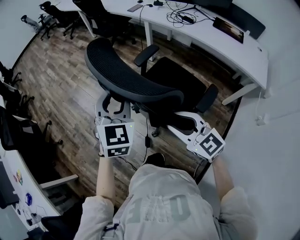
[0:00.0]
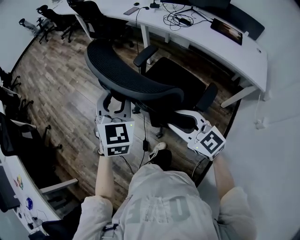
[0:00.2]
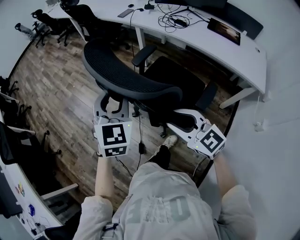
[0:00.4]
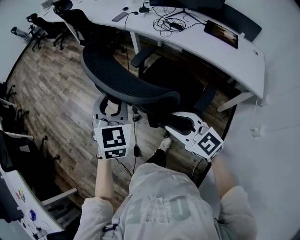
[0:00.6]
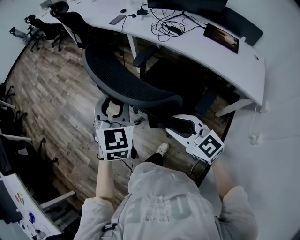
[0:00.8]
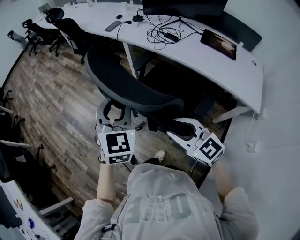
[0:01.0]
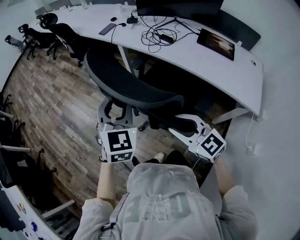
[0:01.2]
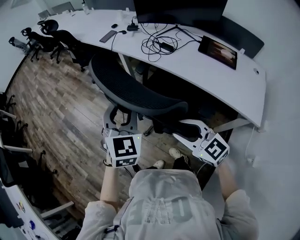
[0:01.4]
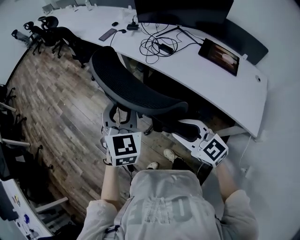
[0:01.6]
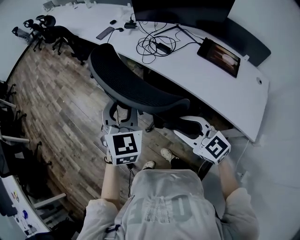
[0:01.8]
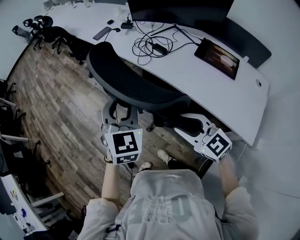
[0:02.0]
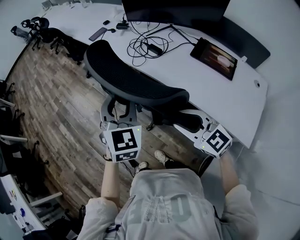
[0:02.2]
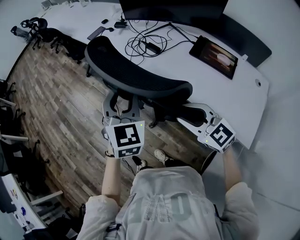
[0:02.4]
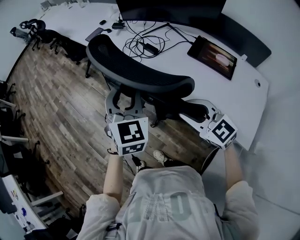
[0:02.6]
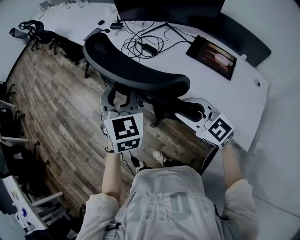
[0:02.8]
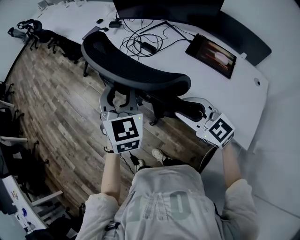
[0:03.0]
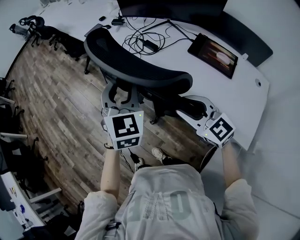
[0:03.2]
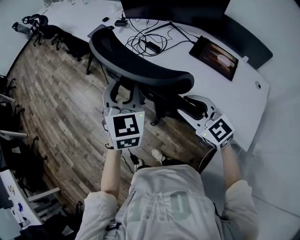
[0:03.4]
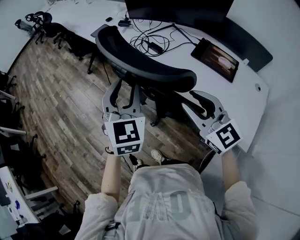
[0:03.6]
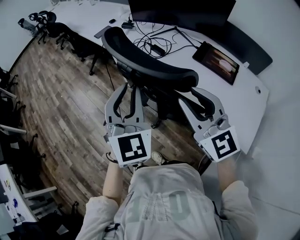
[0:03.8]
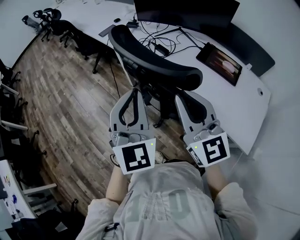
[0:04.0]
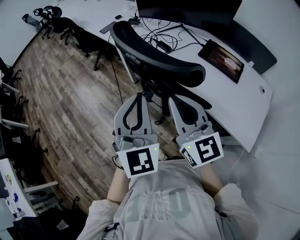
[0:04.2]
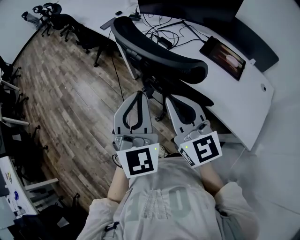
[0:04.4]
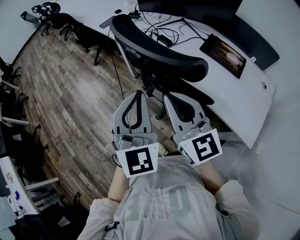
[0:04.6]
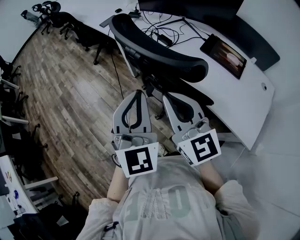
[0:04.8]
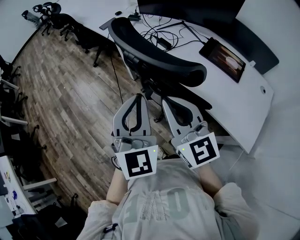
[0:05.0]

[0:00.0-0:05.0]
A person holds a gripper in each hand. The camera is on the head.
0:00.0 to 0:01.6: The pair of grippers is taken to the right and forward, about 40 cm.
0:01.6 to 0:03.4: Both grippers travel together to the right, approximately 20 cm.
0:03.4 to 0:05.0: The right gripper heads to the left and upward, covering some 15 cm, swivels about 20 degrees, and closes. Meanwhile the left gripper moves backward, approximately 10 cm, and closes up.

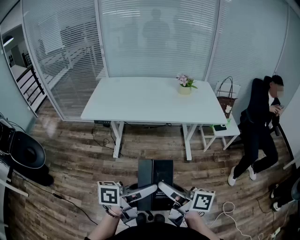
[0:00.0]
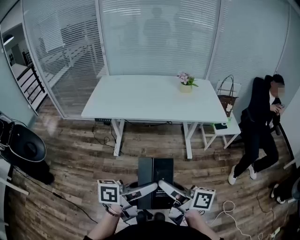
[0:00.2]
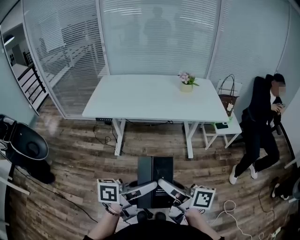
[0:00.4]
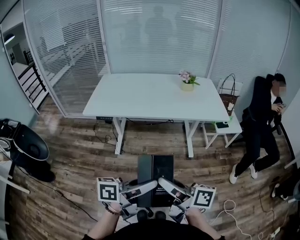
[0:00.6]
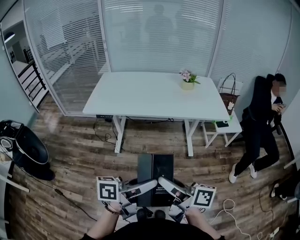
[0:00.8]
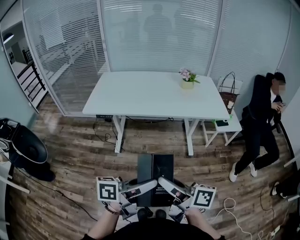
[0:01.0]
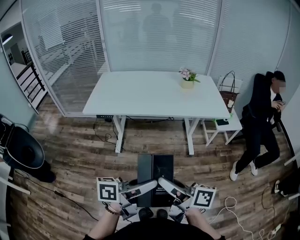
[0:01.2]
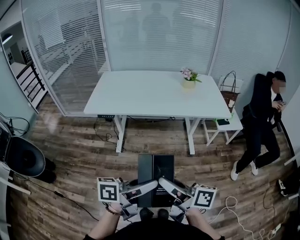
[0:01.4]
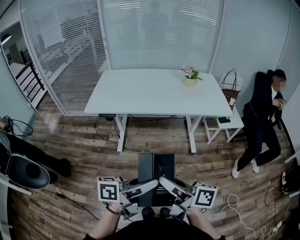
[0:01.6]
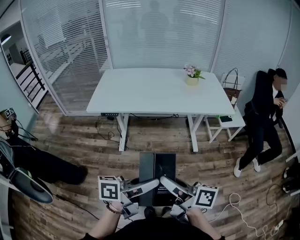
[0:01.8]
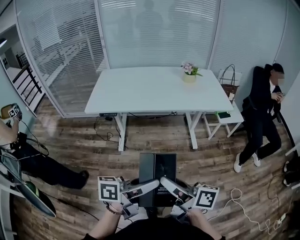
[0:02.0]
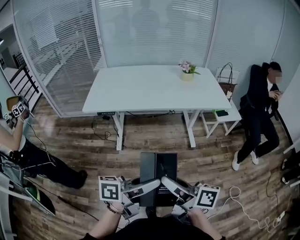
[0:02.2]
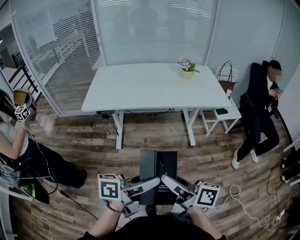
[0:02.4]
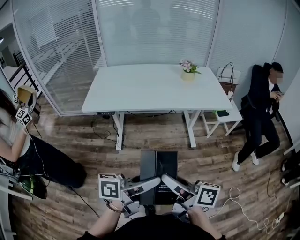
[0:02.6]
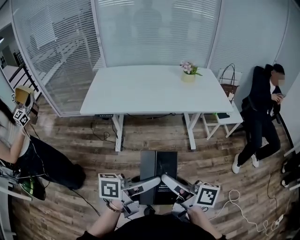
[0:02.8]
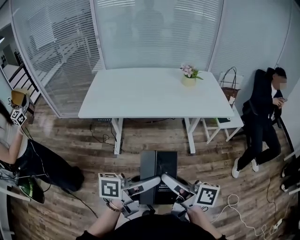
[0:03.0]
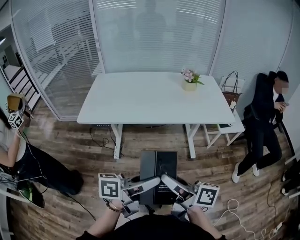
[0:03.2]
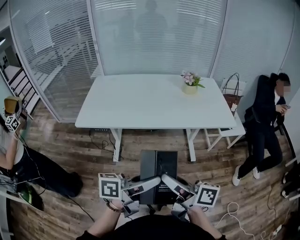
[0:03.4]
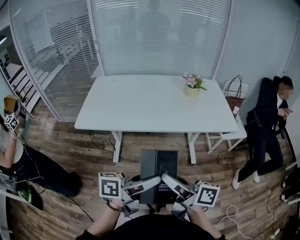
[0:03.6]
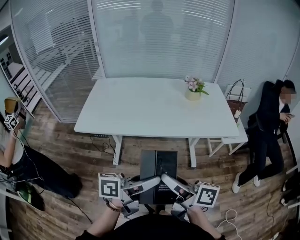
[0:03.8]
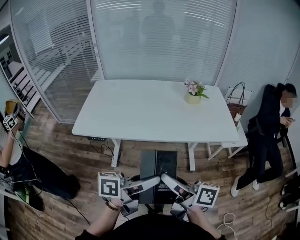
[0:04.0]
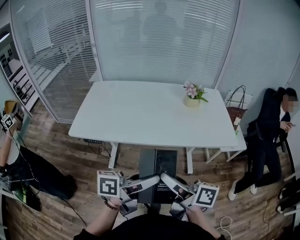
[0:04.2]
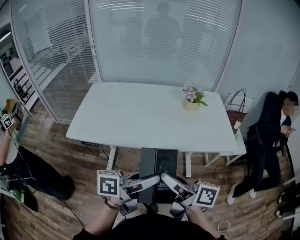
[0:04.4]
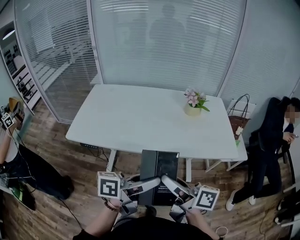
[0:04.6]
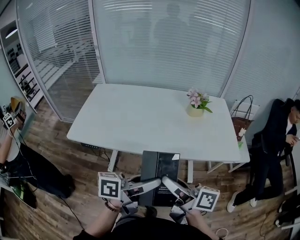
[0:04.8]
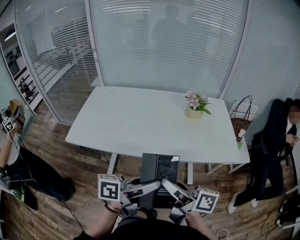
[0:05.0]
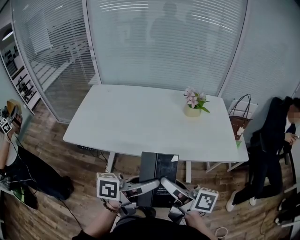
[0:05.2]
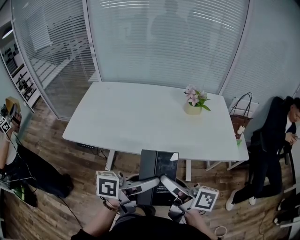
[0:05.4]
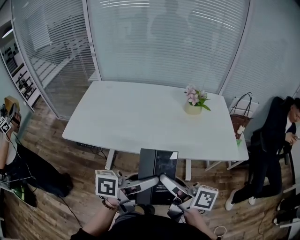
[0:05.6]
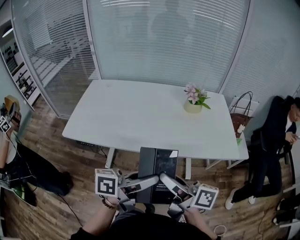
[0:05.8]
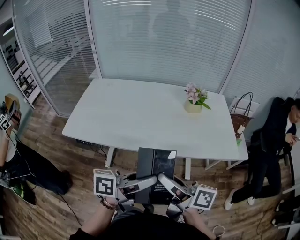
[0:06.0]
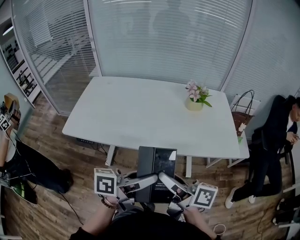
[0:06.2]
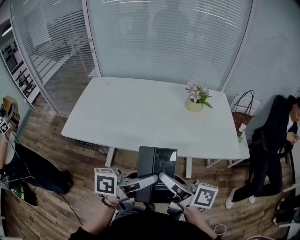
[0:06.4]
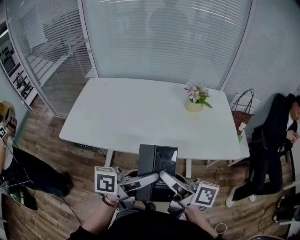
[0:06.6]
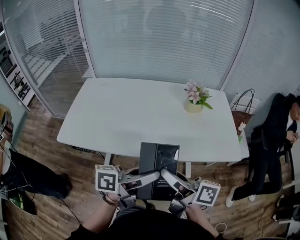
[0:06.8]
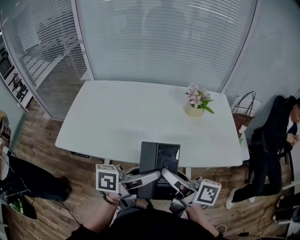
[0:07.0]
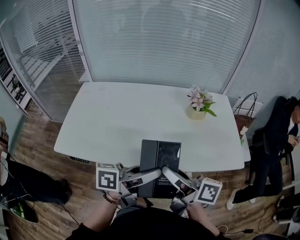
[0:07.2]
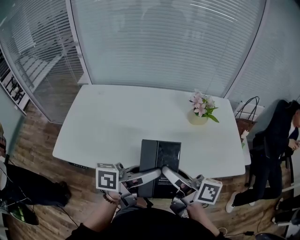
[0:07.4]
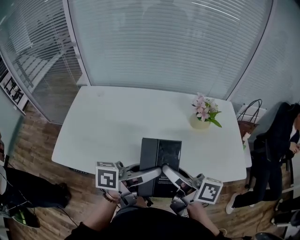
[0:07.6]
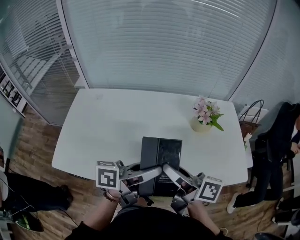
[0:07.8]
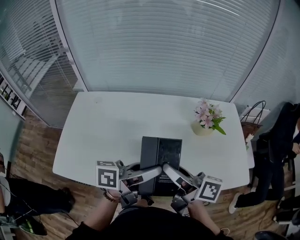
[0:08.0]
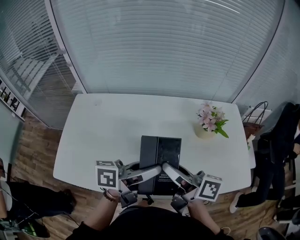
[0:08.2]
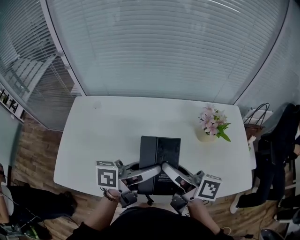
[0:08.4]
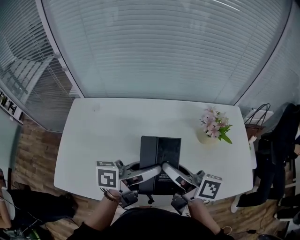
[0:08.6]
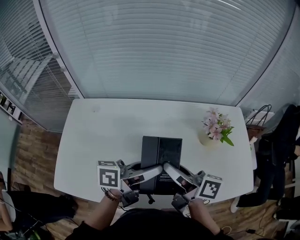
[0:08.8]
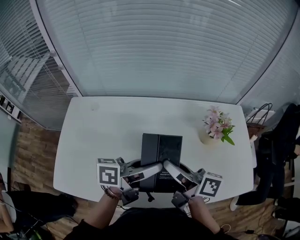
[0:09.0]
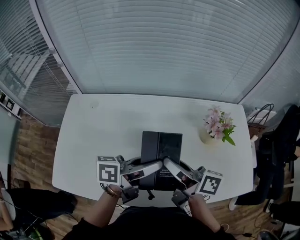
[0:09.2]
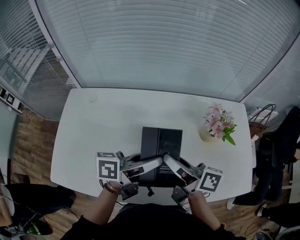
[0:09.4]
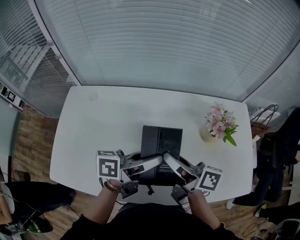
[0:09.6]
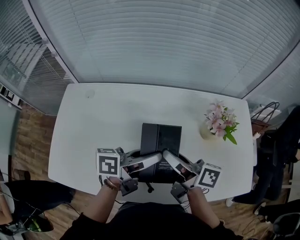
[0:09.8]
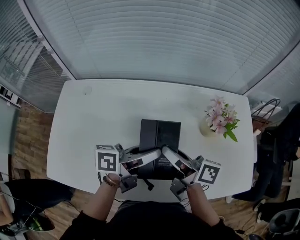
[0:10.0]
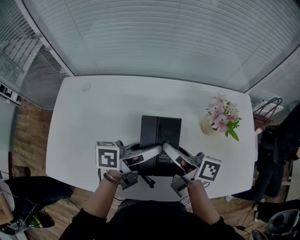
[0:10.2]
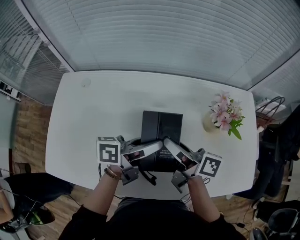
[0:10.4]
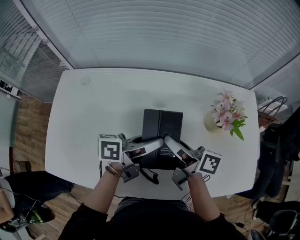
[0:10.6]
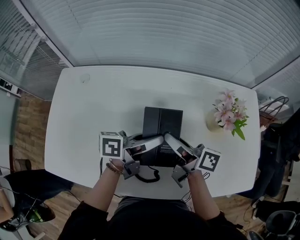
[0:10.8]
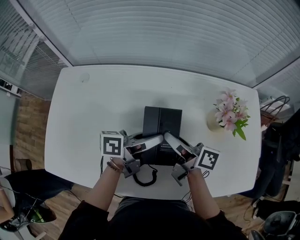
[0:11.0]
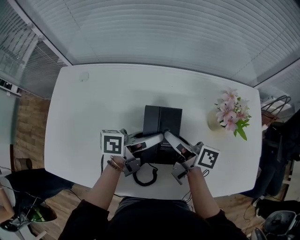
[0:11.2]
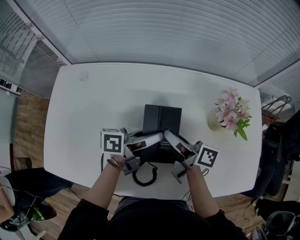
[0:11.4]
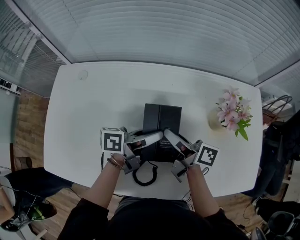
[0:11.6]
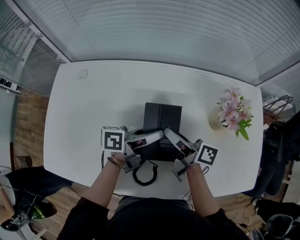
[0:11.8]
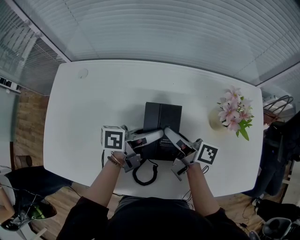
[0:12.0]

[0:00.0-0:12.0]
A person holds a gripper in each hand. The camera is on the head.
0:00.0 to 0:01.6: The grippers move only a little.
0:01.6 to 0:03.0: Both grippers travel together forward, approximately 5 cm.
0:03.0 to 0:04.4: Both grippers travel together forward, roughly 20 cm.
0:04.4 to 0:06.0: The right gripper ends up roughly 5 cm from where it was.
0:06.0 to 0:07.6: The grippers both shift forward by some 20 cm.
0:07.6 to 0:09.0: Both grippers travel together forward and to the left, approximately 15 cm.
0:09.0 to 0:10.4: The grippers both shift downward and forward by some 10 cm.
0:10.4 to 0:12.0: The grippers both shift downward by some 5 cm.

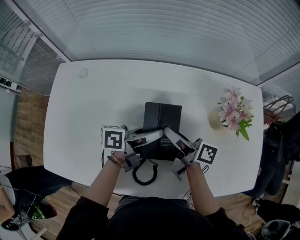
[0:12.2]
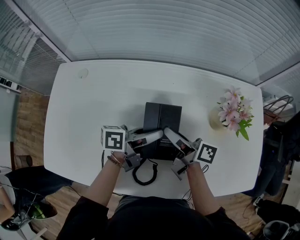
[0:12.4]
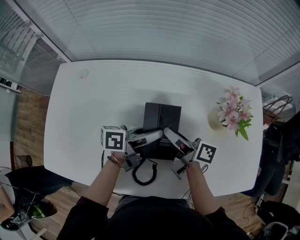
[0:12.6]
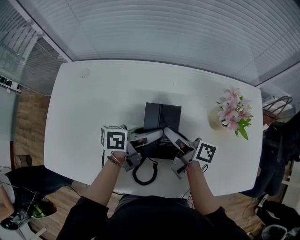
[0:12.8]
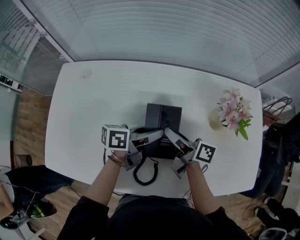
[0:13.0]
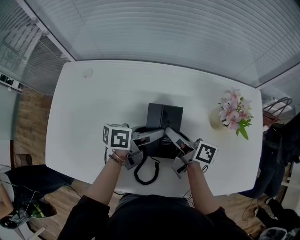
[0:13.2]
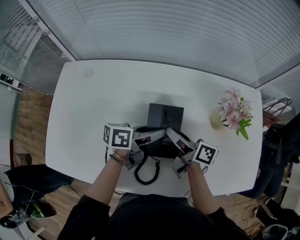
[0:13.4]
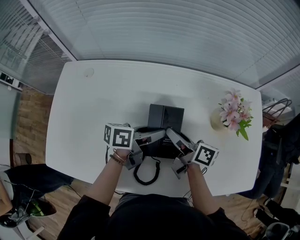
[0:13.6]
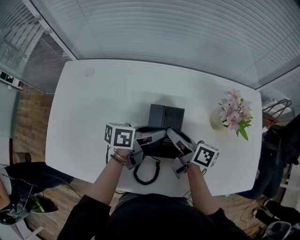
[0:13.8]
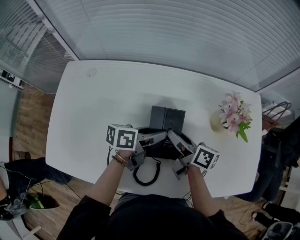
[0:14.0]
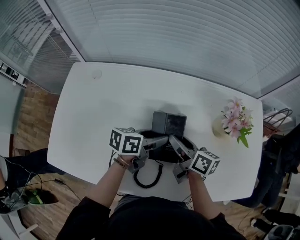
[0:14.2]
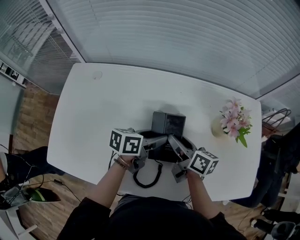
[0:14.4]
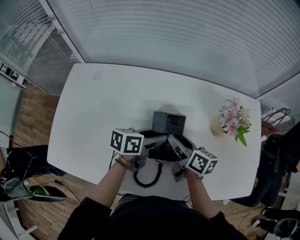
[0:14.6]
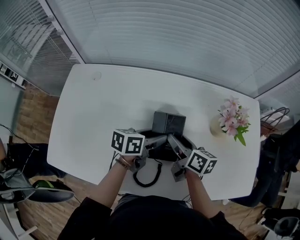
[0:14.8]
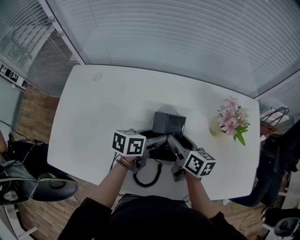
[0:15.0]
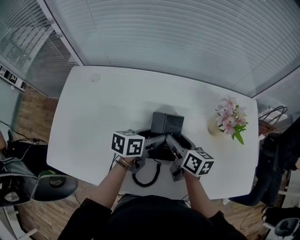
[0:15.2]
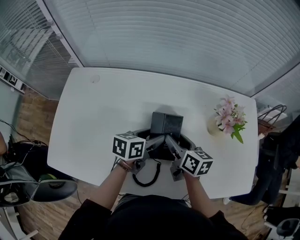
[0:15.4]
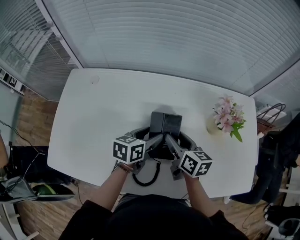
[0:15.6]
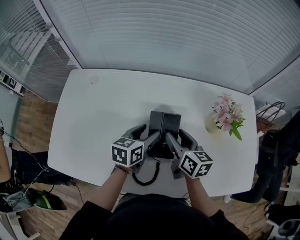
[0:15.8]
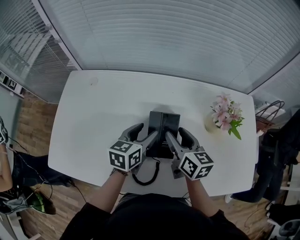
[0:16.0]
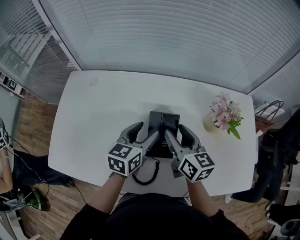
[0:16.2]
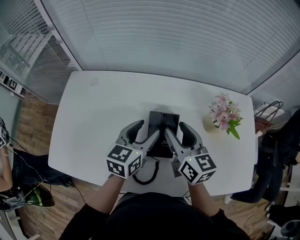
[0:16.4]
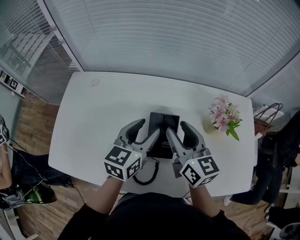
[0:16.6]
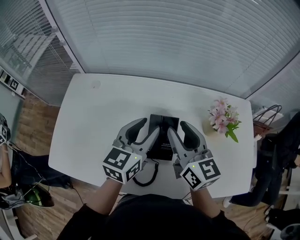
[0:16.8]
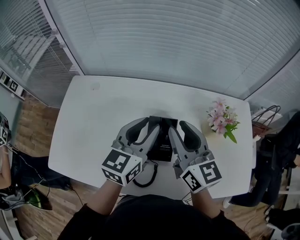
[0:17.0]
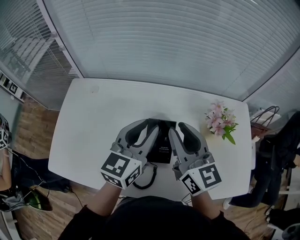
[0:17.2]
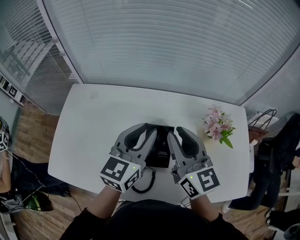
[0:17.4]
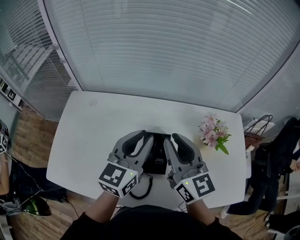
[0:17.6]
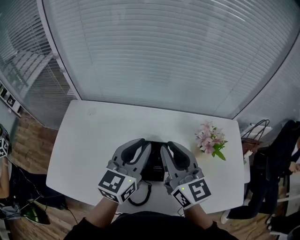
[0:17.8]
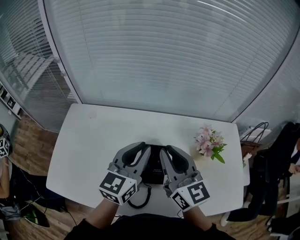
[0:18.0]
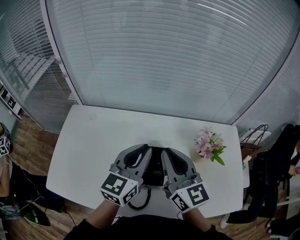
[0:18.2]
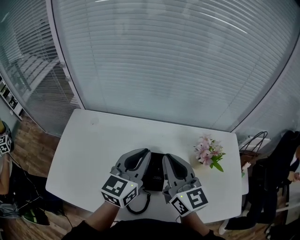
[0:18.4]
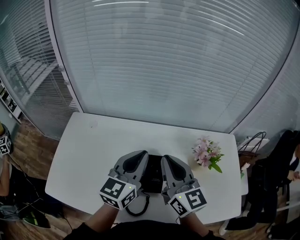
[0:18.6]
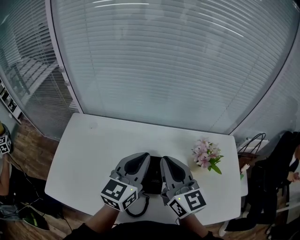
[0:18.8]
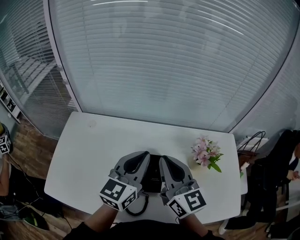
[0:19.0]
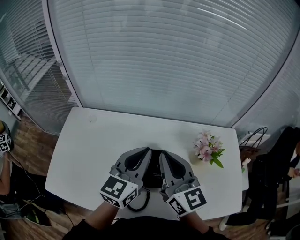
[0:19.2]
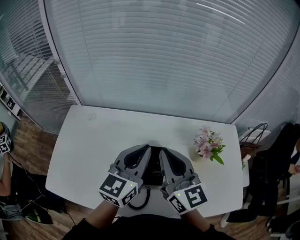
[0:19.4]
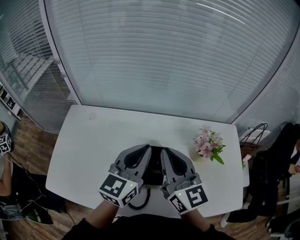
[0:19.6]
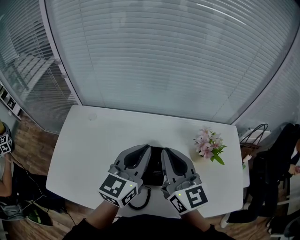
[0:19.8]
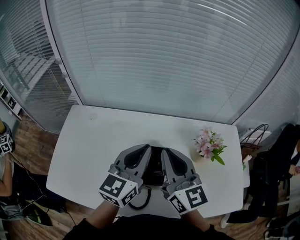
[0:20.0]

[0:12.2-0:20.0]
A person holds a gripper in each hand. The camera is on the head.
0:12.2 to 0:13.8: The grippers make only small movements.
0:13.8 to 0:15.4: The left gripper rotates some 20 degrees. Meanwhile the right gripper changes its angle by some 30 degrees.
0:15.4 to 0:16.8: Both grippers move upward, roughly 15 cm. The left gripper rotates approximately 40 degrees, while the right gripper turns by about 30 degrees.
0:16.8 to 0:18.4: Both grippers move upward, approximately 5 cm. The right gripper closes, while the left gripper closes up.
0:18.4 to 0:20.0: The grippers make only small movements.
